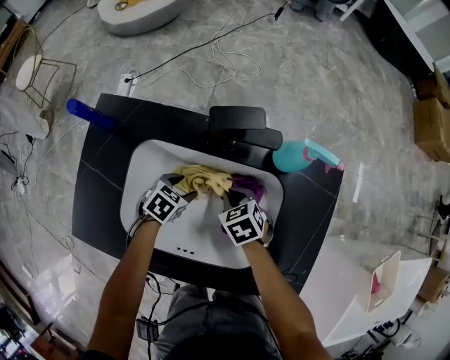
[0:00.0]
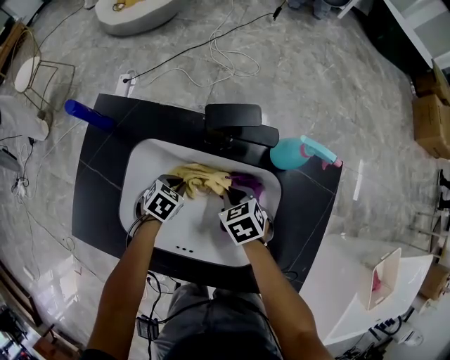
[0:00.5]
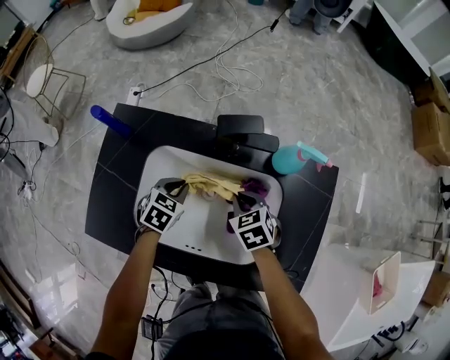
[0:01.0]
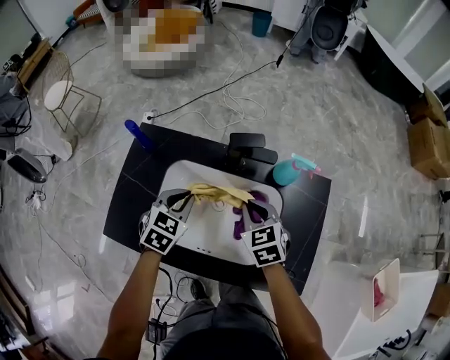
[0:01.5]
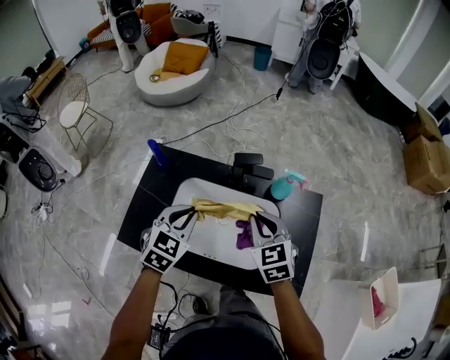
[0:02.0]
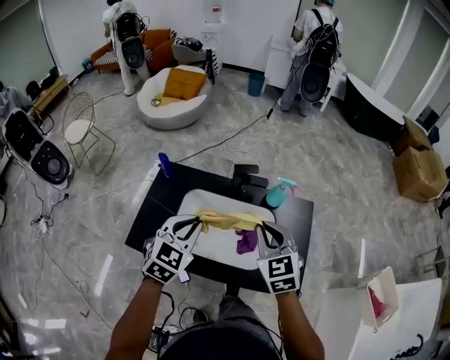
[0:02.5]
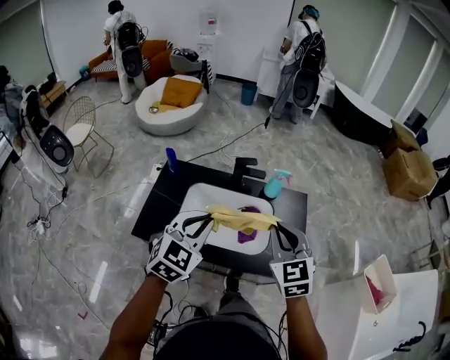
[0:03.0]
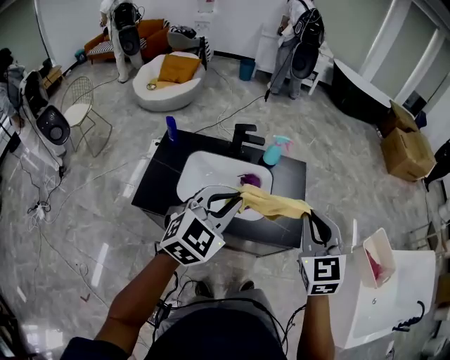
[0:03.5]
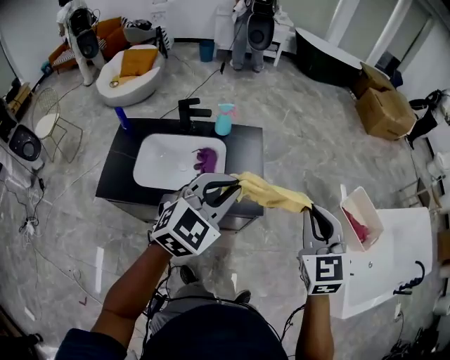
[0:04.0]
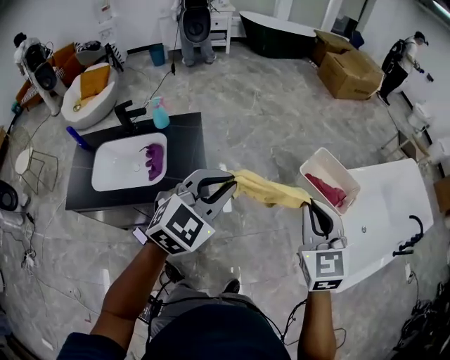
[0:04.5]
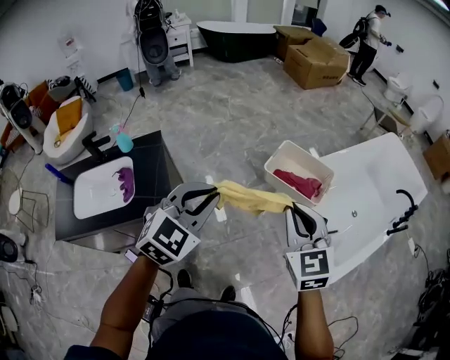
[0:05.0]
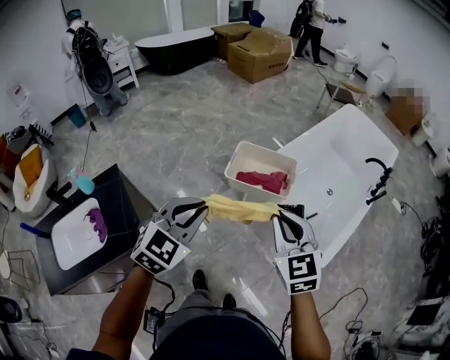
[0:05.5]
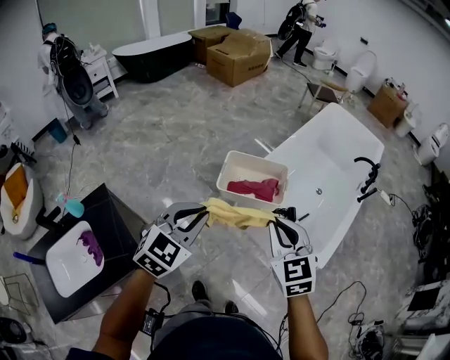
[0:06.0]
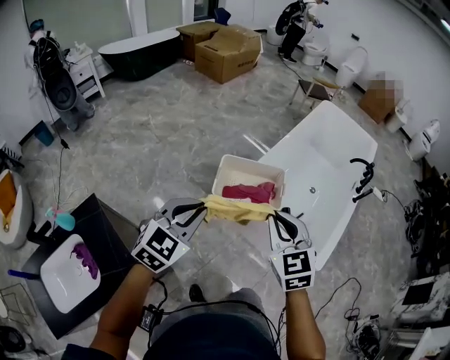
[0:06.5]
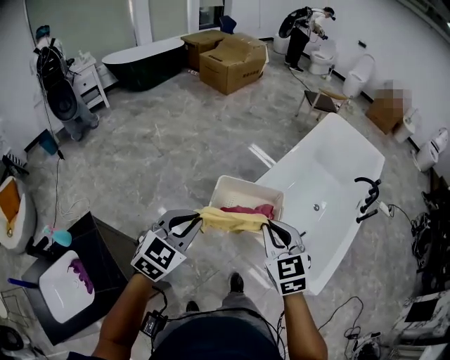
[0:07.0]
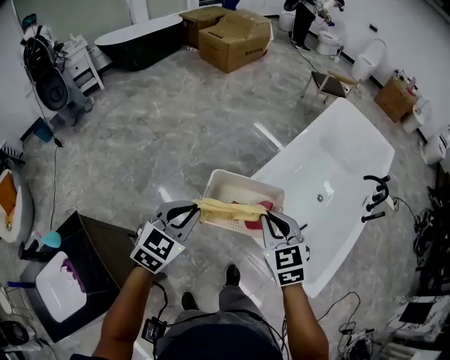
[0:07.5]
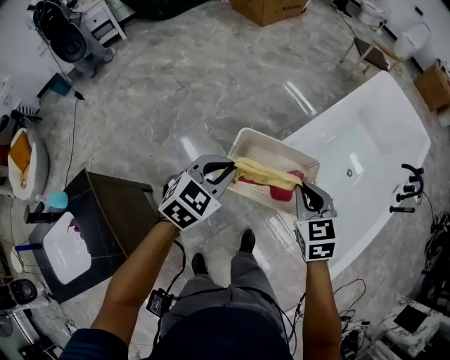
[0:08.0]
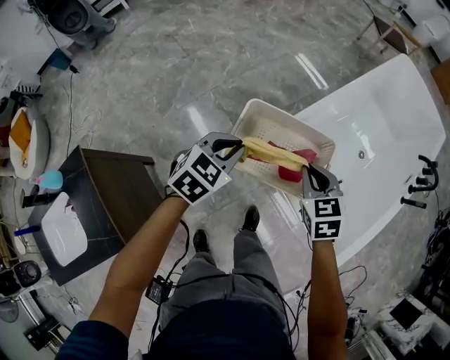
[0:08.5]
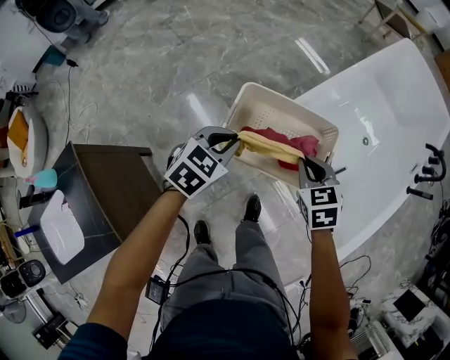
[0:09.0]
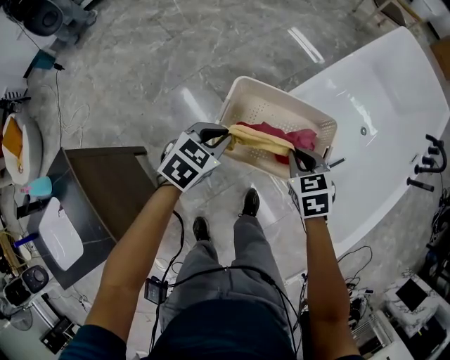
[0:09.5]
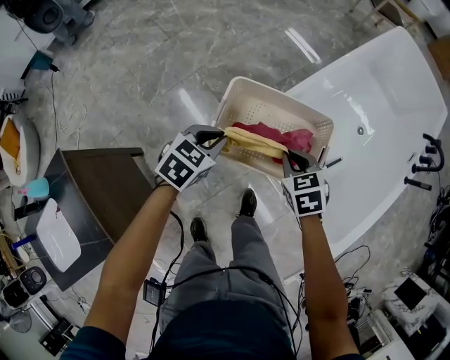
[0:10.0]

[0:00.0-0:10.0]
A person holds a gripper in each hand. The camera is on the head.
0:00.0 to 0:02.0: Both grippers move upward, some 35 cm. The left gripper rotates approximately 40 degrees, and closes its fingers; the right gripper rotates approximately 30 degrees.
0:02.0 to 0:04.0: The pair of grippers is taken about 50 cm. The left gripper changes its angle by about 40 degrees, while the right gripper rotates some 30 degrees.
0:04.0 to 0:06.0: Both grippers are carried some 50 cm. The right gripper swivels approximately 40 degrees; the left gripper rotates roughly 40 degrees.
0:06.0 to 0:08.0: Both grippers move forward and downward, approximately 40 cm.
0:08.0 to 0:10.0: The two grippers go approximately 20 cm downward.

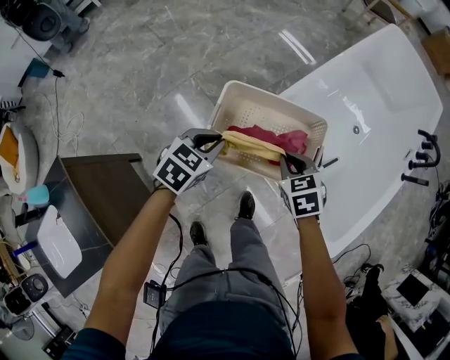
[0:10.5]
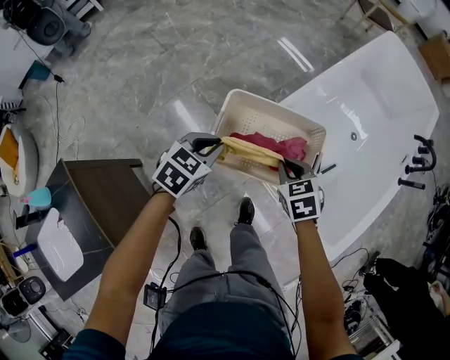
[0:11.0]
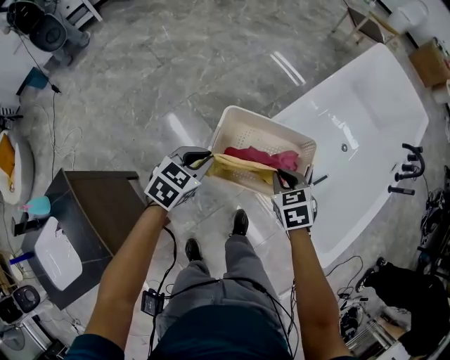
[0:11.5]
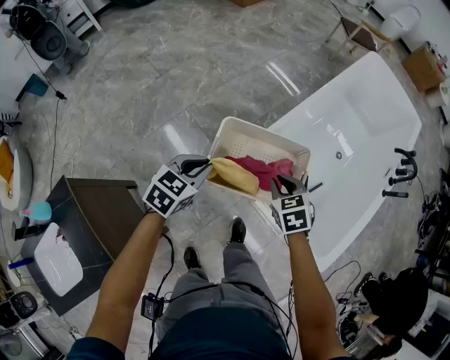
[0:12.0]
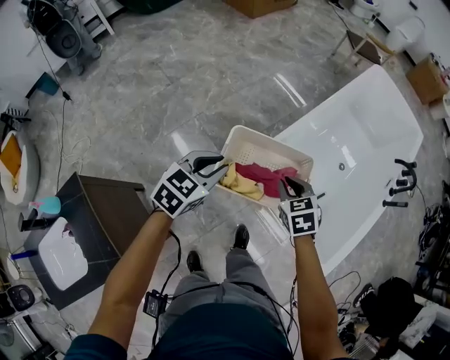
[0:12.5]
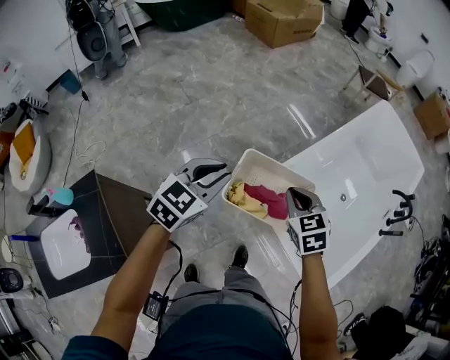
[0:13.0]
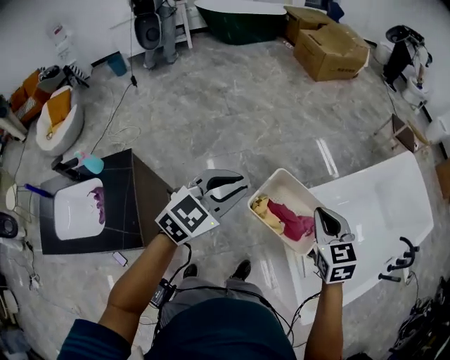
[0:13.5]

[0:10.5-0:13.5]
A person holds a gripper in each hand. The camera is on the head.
0:10.5 to 0:12.0: Both grippers move upward, some 5 cm.
0:12.0 to 0:13.5: The two grippers go about 30 cm upward. The right gripper swivels approximately 30 degrees. The left gripper swivels about 30 degrees.

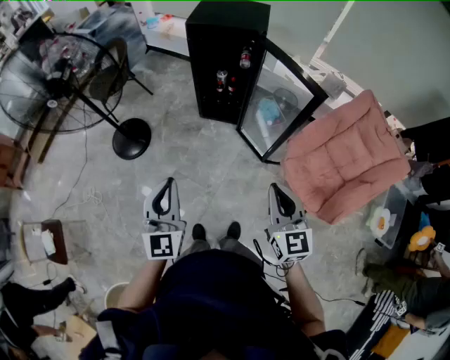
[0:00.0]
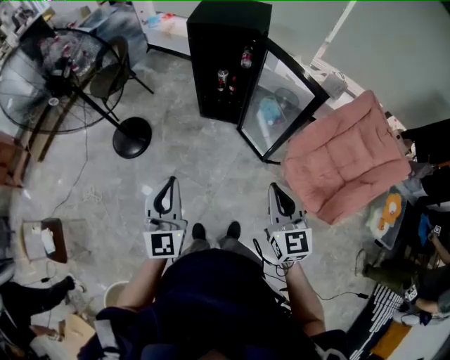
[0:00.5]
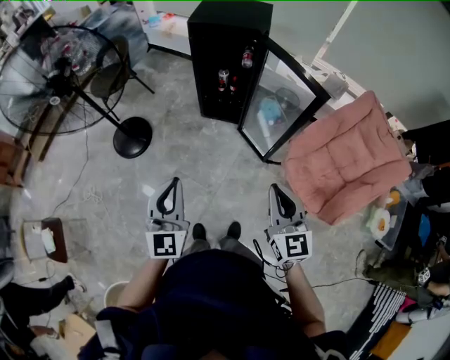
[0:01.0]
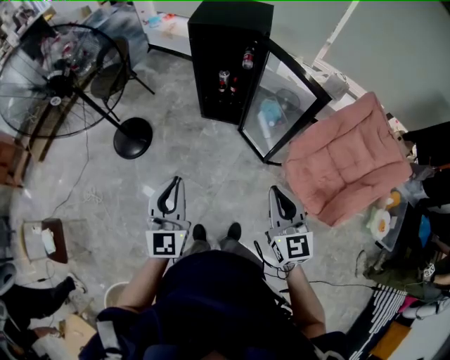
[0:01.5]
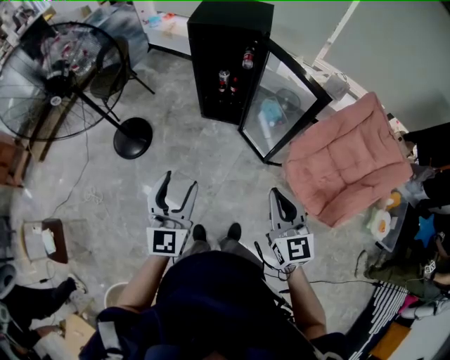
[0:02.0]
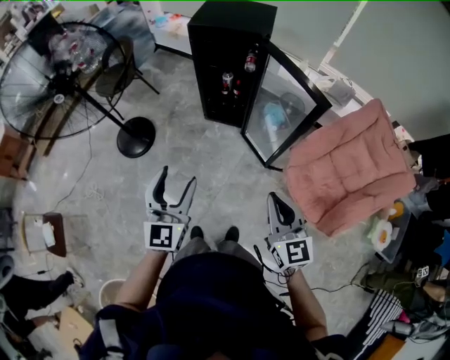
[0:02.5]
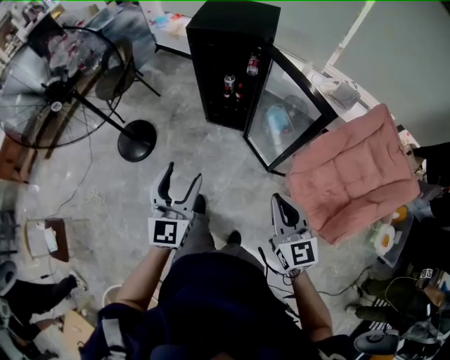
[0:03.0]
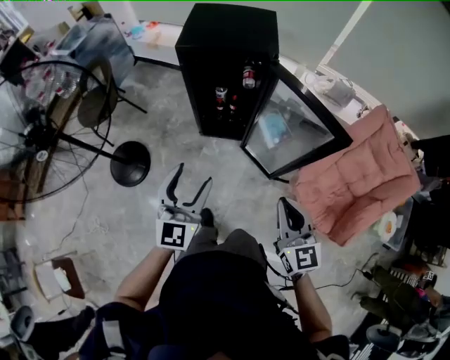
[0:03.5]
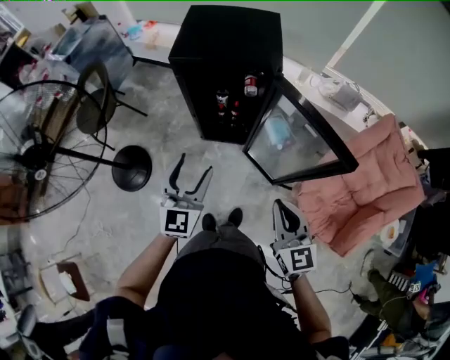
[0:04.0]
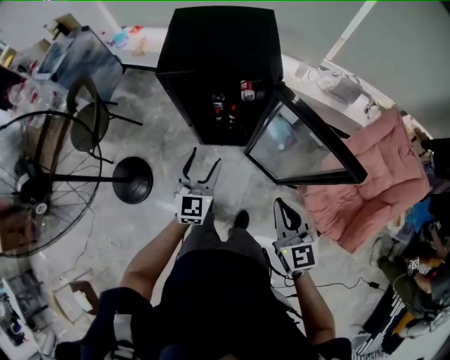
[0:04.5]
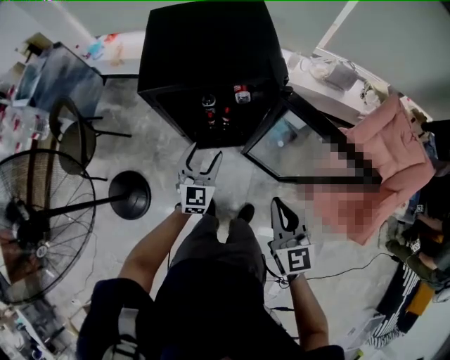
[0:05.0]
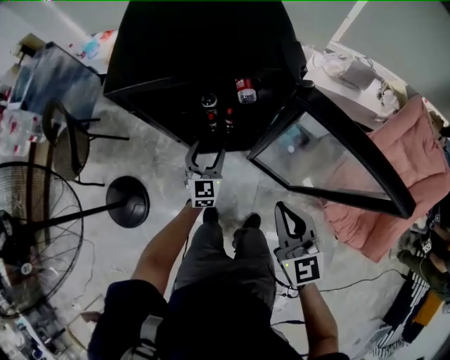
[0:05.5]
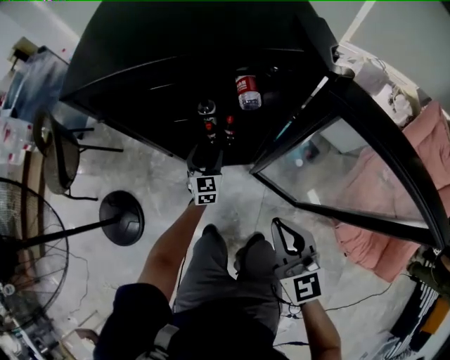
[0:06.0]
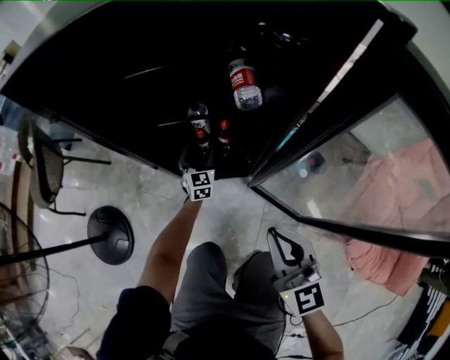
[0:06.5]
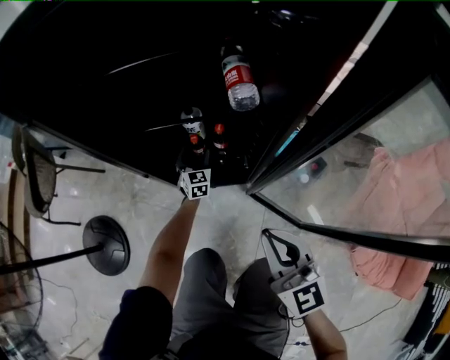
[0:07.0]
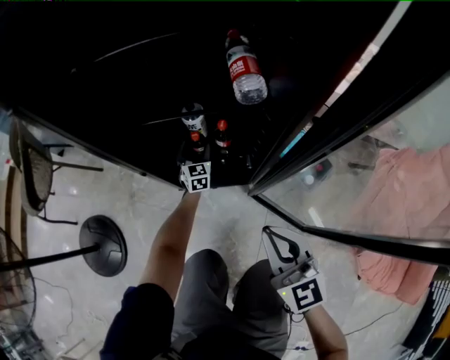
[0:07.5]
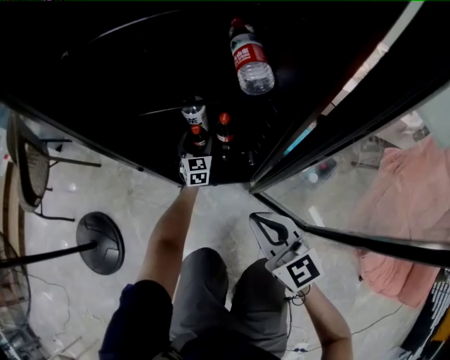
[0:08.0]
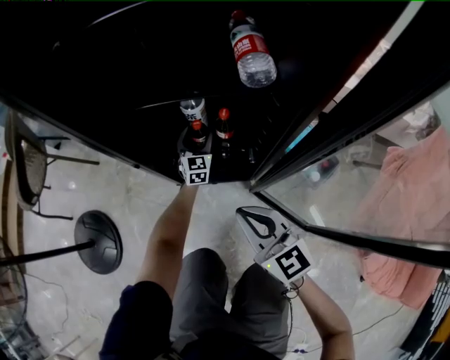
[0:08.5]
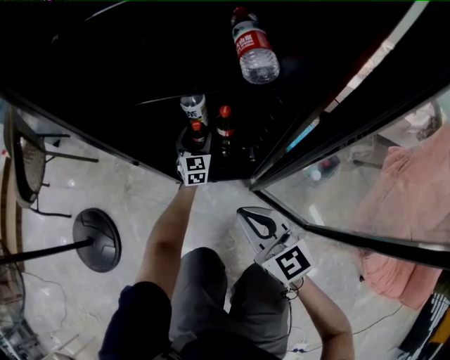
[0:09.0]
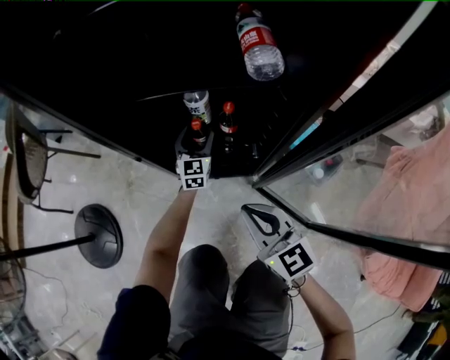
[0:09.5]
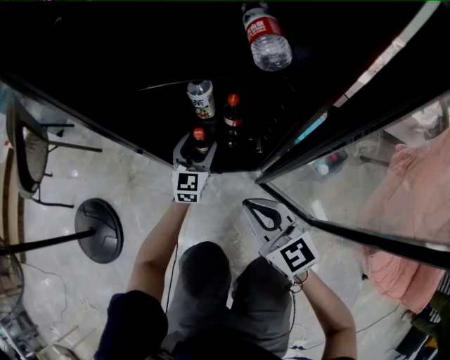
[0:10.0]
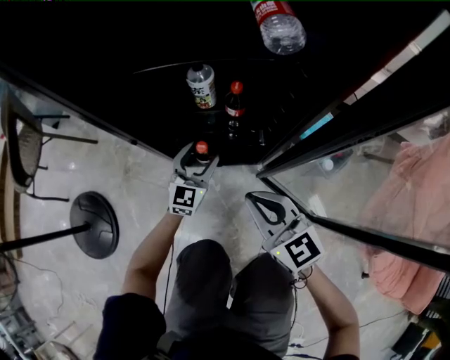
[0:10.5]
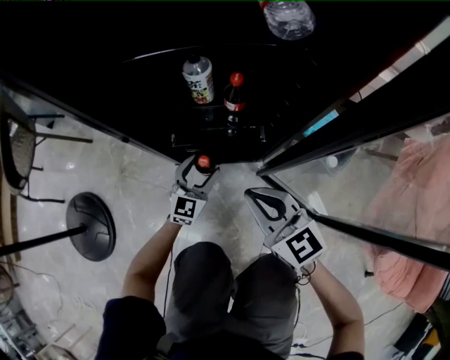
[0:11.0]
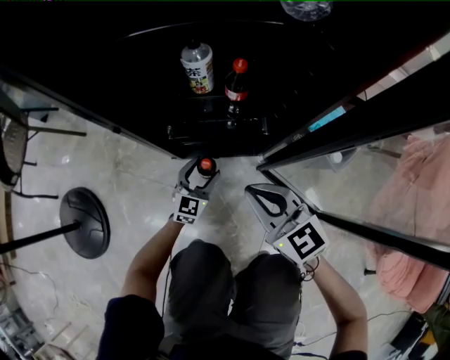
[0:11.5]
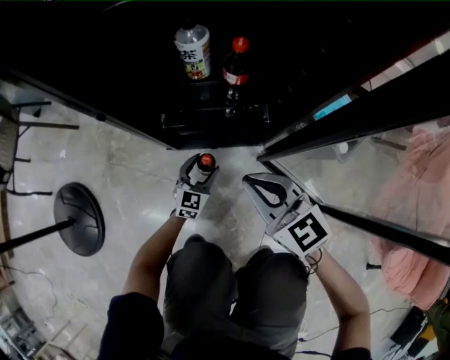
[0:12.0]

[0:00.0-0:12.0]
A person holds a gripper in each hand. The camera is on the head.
0:00.0 to 0:02.0: The left gripper opens.
0:02.0 to 0:04.0: The grippers both shift forward by approximately 35 cm.
0:04.0 to 0:06.0: The right gripper is displaced downward and forward by about 35 cm; the left gripper shifts some 60 cm downward and forward.
0:06.0 to 0:08.0: The left gripper travels downward and forward by about 30 cm, while the right gripper shifts about 25 cm downward.
0:08.0 to 0:10.0: The left gripper is displaced backward and upward by some 10 cm. The right gripper shifts roughly 5 cm downward.
0:10.0 to 0:12.0: The left gripper shifts roughly 30 cm downward and backward; the right gripper goes some 10 cm downward.

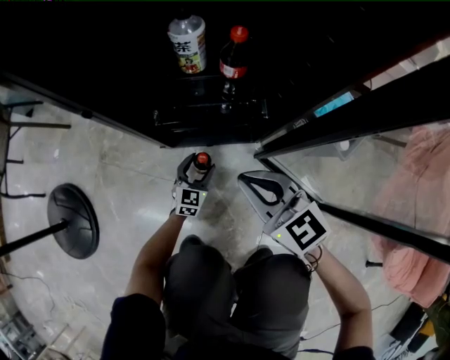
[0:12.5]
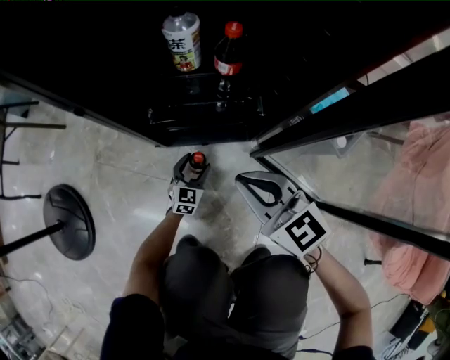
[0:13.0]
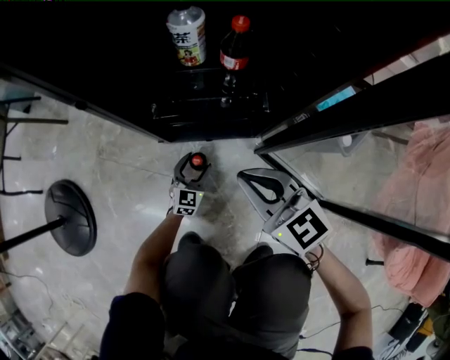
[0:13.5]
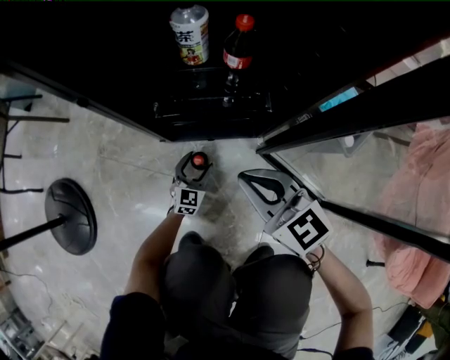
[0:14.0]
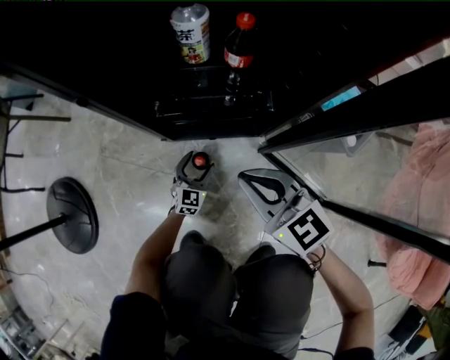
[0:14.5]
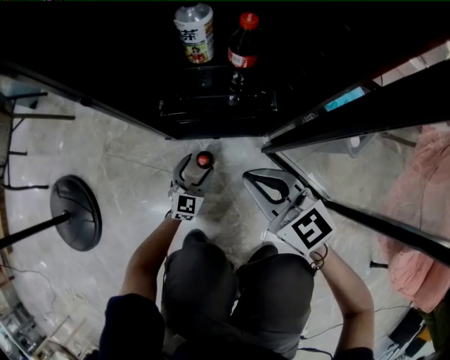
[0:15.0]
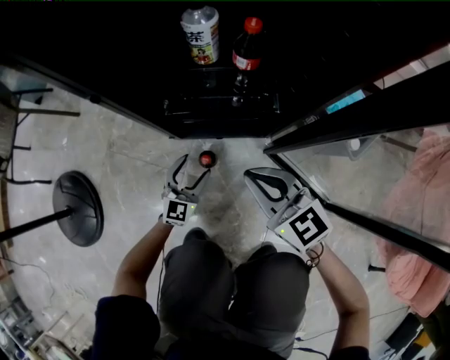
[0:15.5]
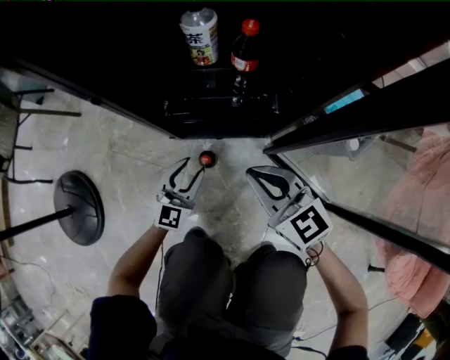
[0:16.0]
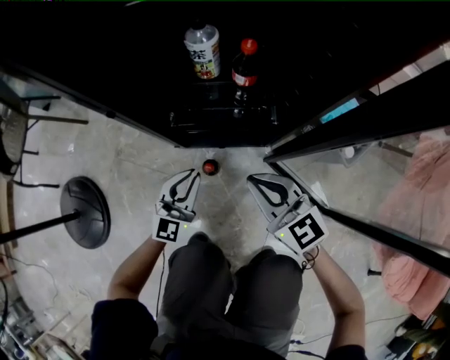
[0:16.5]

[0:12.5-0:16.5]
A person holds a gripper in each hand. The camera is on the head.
0:12.5 to 0:14.5: The grippers move only a little.
0:14.5 to 0:16.5: The left gripper goes about 25 cm upward, and closes.
